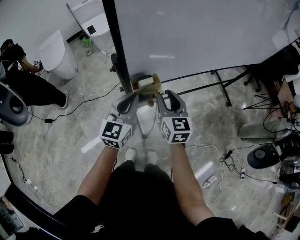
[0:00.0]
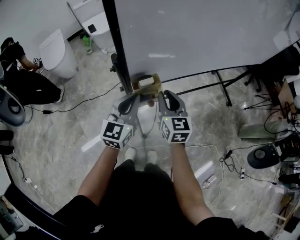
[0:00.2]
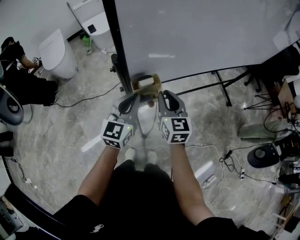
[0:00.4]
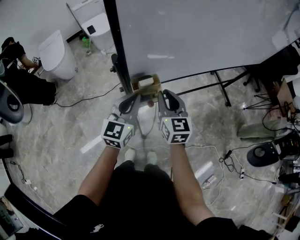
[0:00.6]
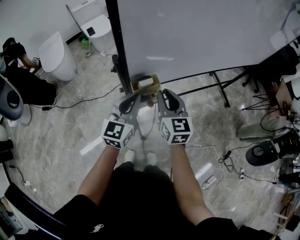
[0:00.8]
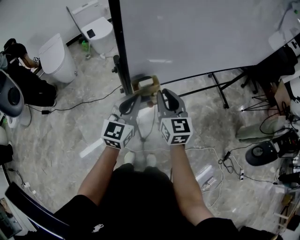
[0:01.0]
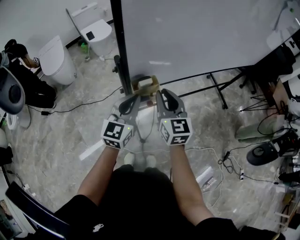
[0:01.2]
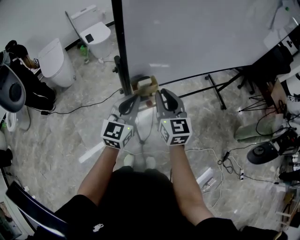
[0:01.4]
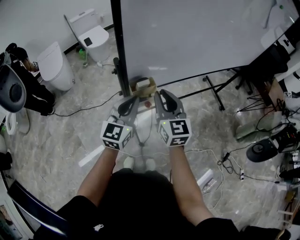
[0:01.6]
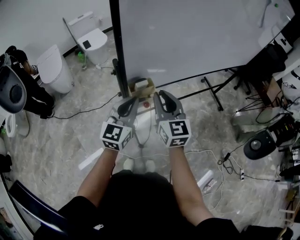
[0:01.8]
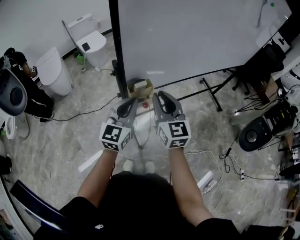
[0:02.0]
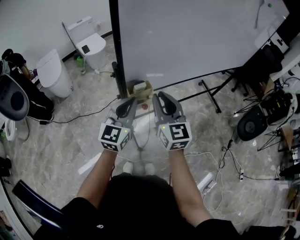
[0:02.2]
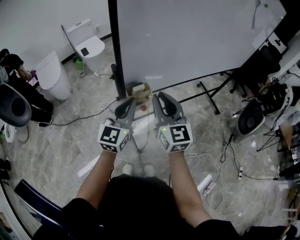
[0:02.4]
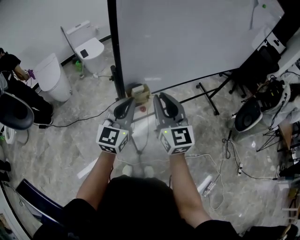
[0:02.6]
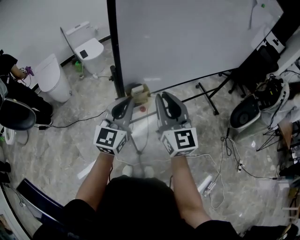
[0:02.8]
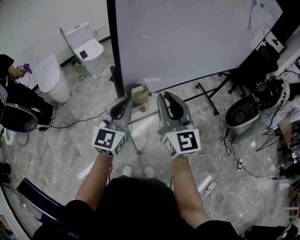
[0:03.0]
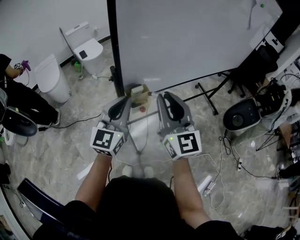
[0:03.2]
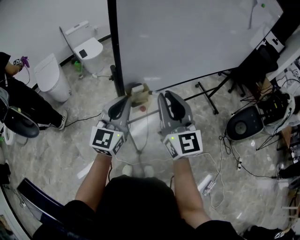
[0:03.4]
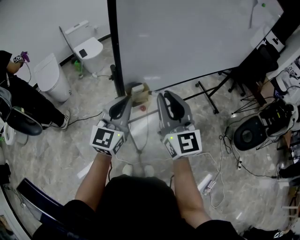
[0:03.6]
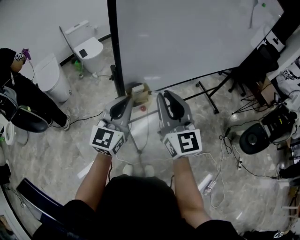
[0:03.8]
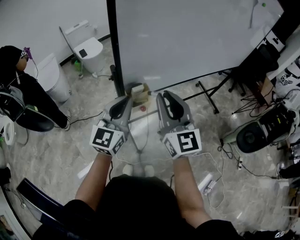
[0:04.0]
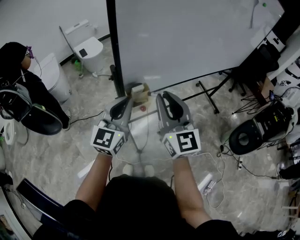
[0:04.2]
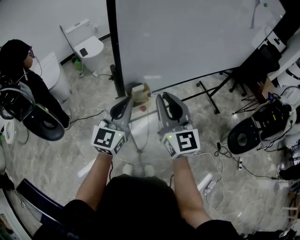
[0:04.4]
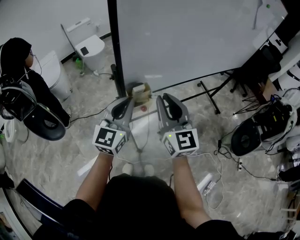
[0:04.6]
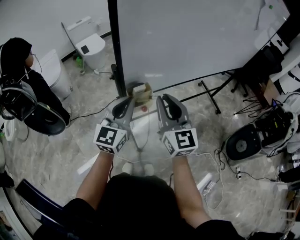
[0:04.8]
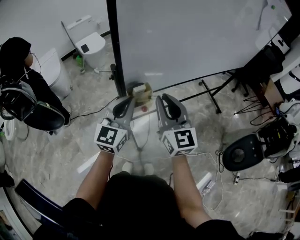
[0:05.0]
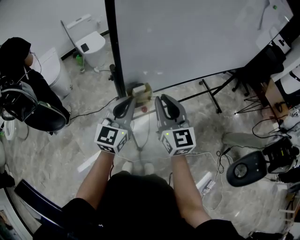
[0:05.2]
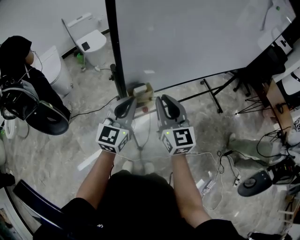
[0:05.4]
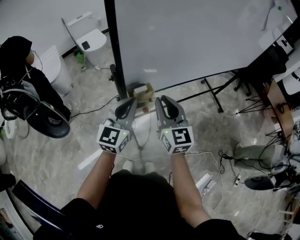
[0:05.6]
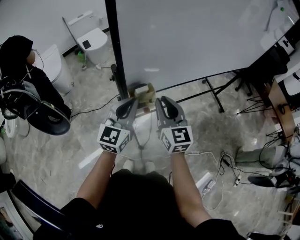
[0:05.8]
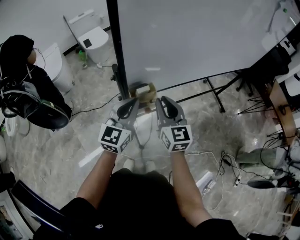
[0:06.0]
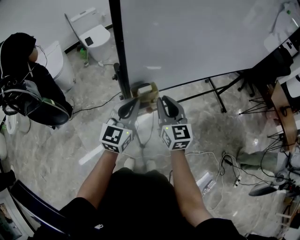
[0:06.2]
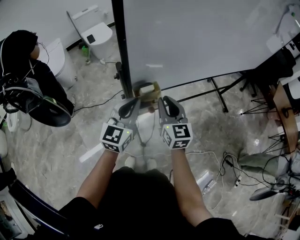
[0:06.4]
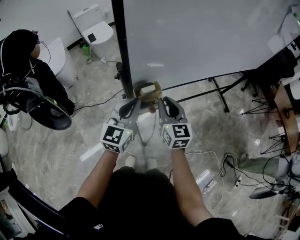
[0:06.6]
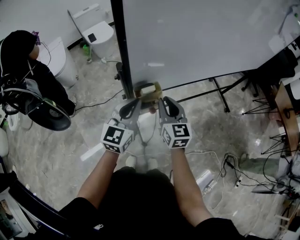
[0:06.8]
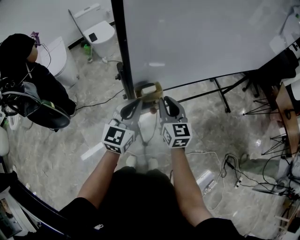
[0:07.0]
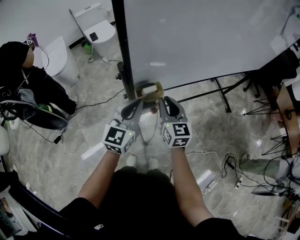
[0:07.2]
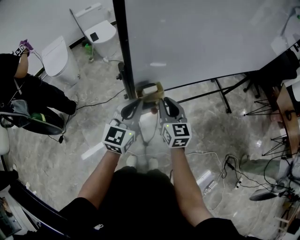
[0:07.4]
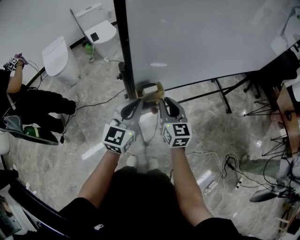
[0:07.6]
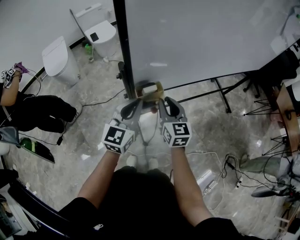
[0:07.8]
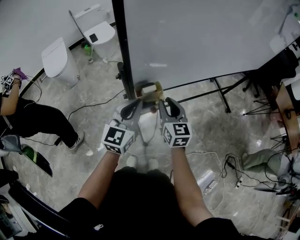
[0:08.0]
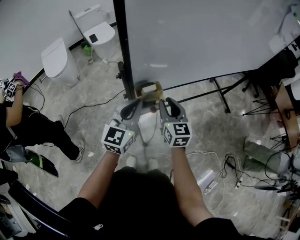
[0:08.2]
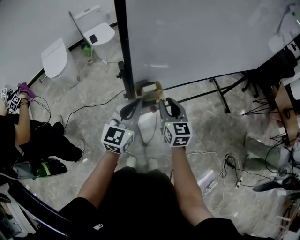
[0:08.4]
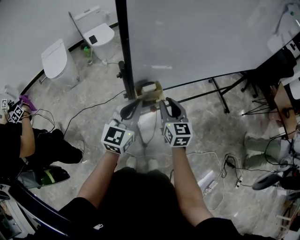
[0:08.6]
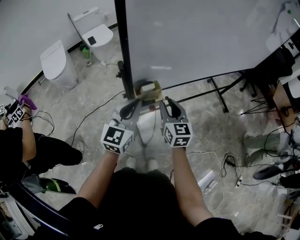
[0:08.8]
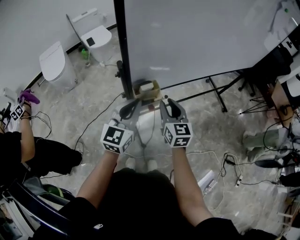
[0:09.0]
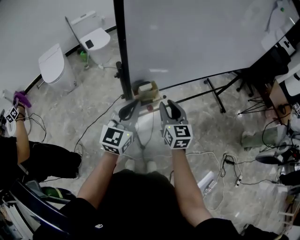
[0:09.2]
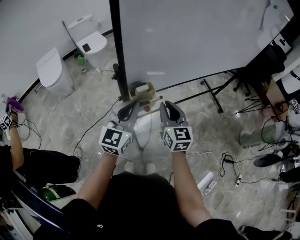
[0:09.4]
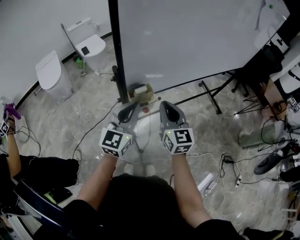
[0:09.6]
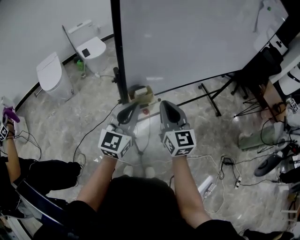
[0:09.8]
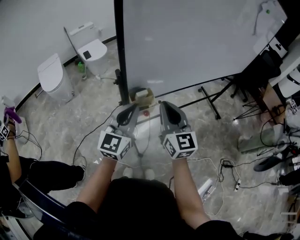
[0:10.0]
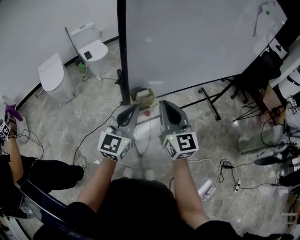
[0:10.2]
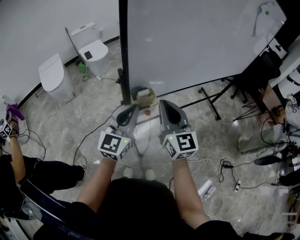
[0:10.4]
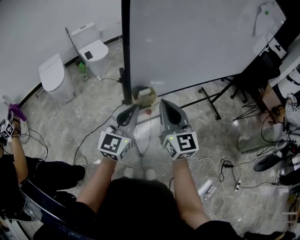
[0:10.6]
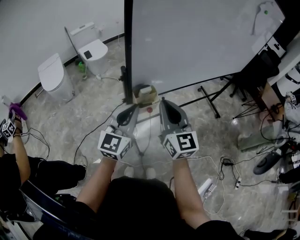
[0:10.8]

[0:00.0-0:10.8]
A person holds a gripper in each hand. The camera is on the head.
0:00.0 to 0:01.6: The right gripper moves upward, roughly 10 cm. The left gripper moves about 5 cm.
0:01.6 to 0:03.0: The right gripper travels upward and backward by approximately 15 cm, while the left gripper moves upward, approximately 10 cm.
0:03.0 to 0:04.6: The grippers stay close to where they were, moving slightly.
0:04.6 to 0:06.2: The right gripper moves downward and forward, roughly 15 cm; the left gripper travels downward by some 5 cm.
0:06.2 to 0:07.8: The right gripper shifts roughly 5 cm downward.
0:07.8 to 0:09.2: The grippers make only small movements.
0:09.2 to 0:10.8: The right gripper heads upward and backward, covering approximately 15 cm, and closes its fingers, while the left gripper goes some 5 cm backward.

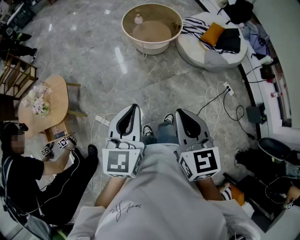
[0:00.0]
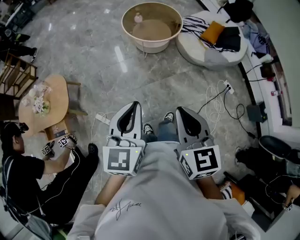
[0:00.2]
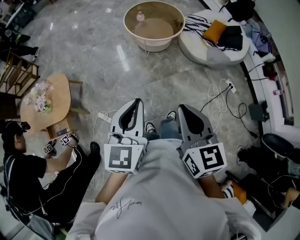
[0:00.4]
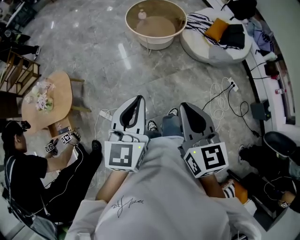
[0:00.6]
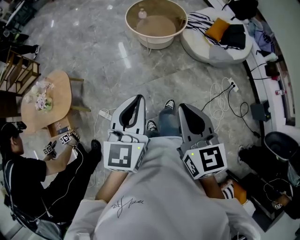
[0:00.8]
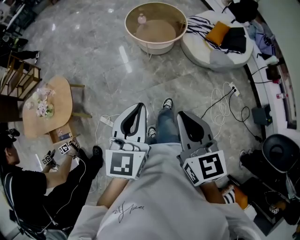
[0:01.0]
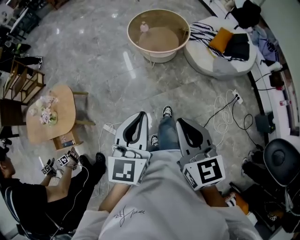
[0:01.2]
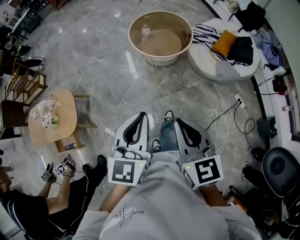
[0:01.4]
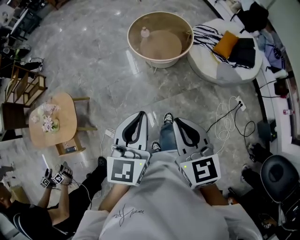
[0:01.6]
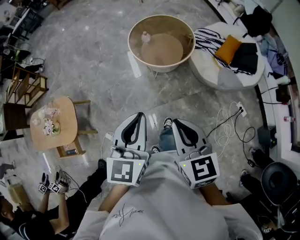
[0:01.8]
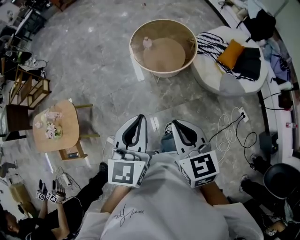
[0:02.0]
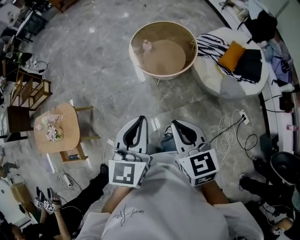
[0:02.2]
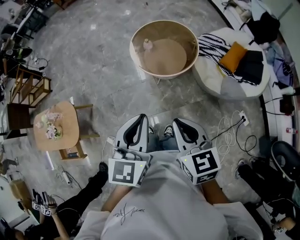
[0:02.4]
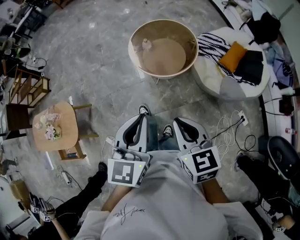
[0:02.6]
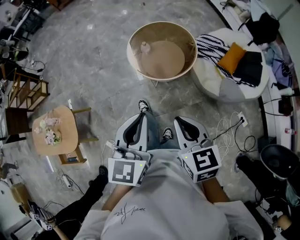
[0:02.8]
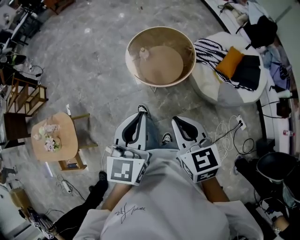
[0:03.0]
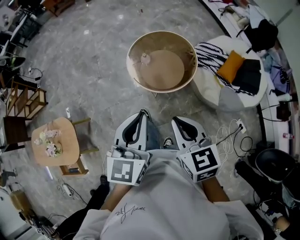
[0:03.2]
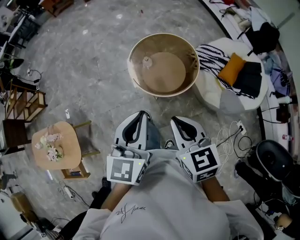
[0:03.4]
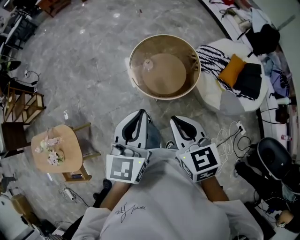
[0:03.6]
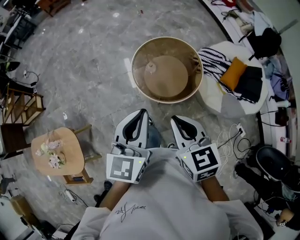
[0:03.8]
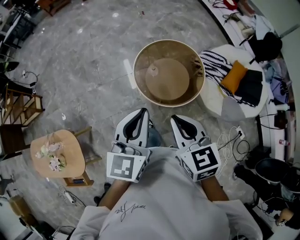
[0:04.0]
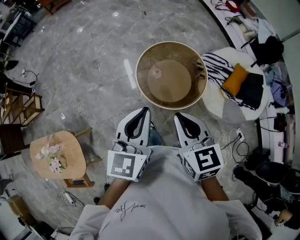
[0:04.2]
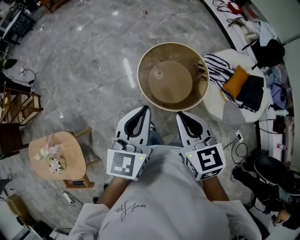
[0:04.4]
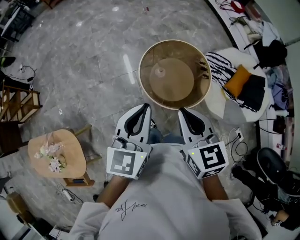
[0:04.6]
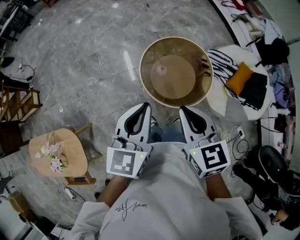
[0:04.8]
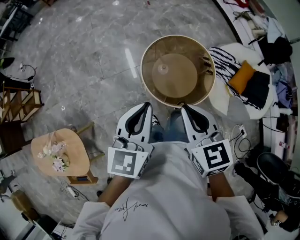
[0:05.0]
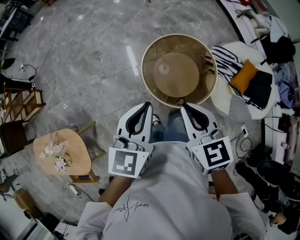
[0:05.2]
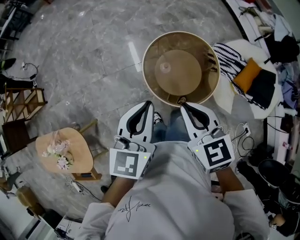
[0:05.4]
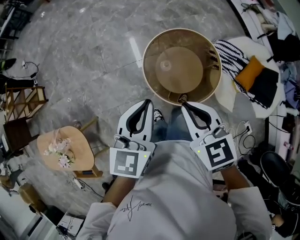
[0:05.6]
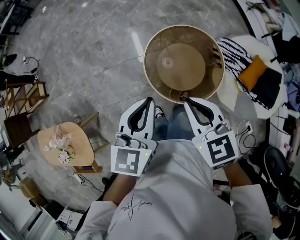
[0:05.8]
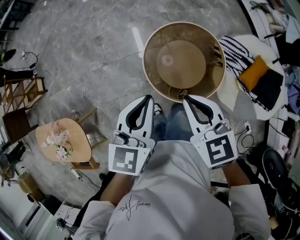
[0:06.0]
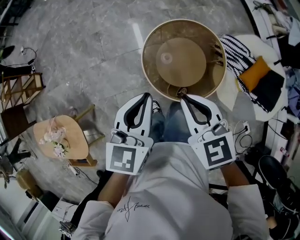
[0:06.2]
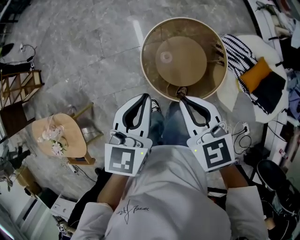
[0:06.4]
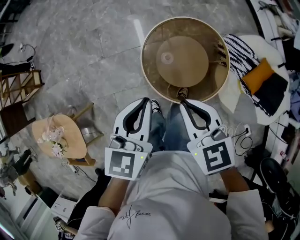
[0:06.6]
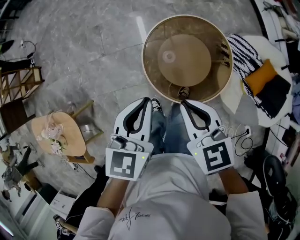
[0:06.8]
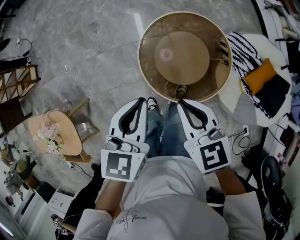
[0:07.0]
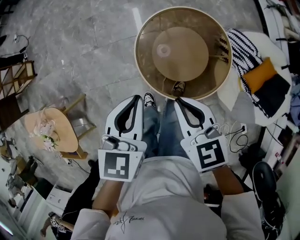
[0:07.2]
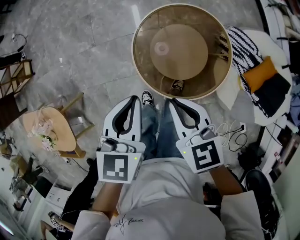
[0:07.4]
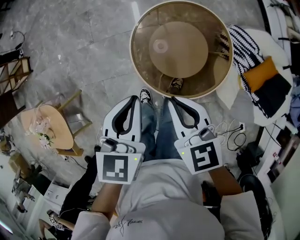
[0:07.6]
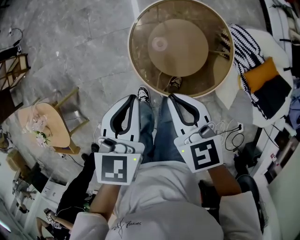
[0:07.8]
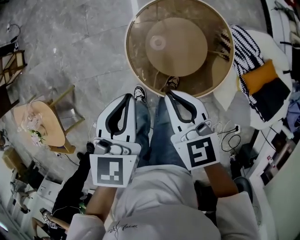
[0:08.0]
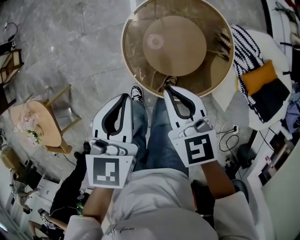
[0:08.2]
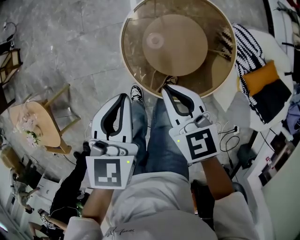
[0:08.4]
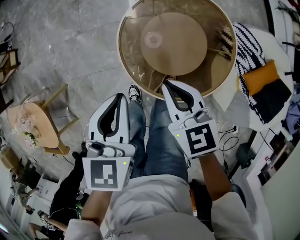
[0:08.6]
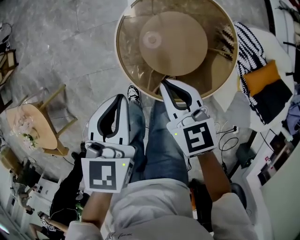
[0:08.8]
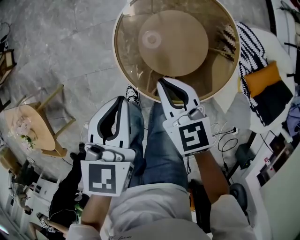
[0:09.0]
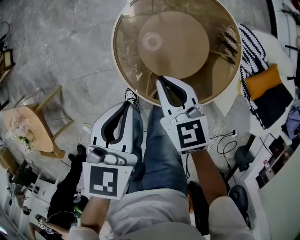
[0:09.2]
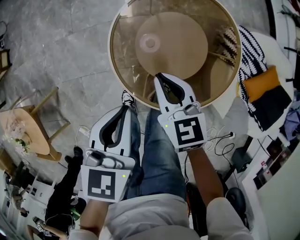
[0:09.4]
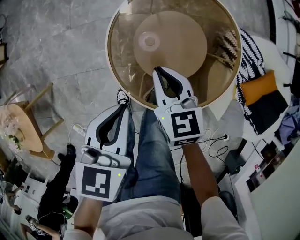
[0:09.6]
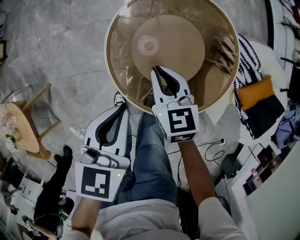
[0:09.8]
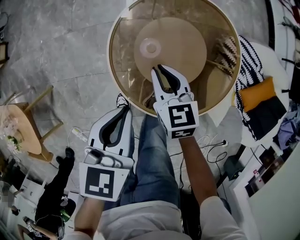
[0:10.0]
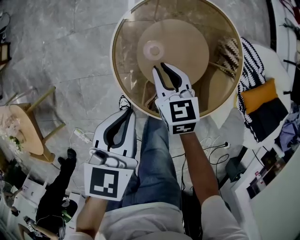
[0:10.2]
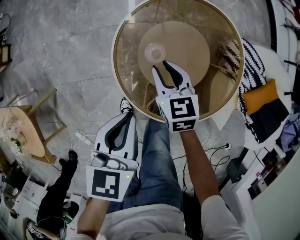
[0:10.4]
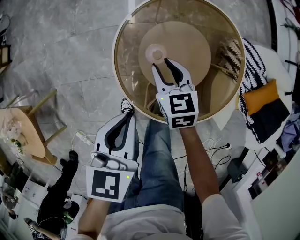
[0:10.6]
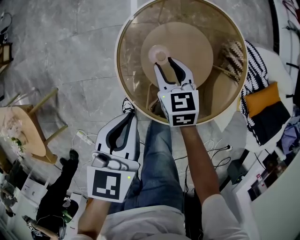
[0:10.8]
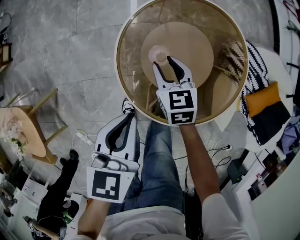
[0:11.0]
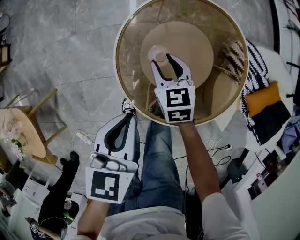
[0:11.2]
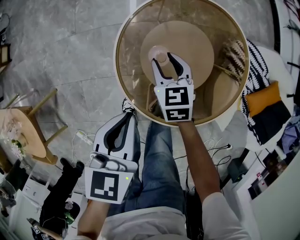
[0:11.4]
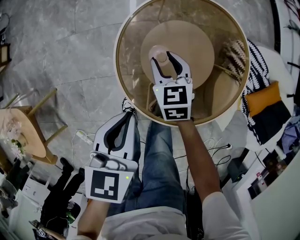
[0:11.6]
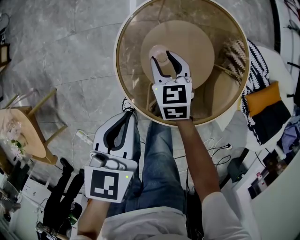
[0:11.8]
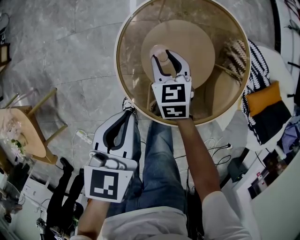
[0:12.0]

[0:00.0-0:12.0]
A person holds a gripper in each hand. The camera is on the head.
0:00.0 to 0:01.6: The grippers both shift forward by about 15 cm.
0:01.6 to 0:03.0: Both grippers move forward, approximately 20 cm.
0:03.0 to 0:04.4: Both grippers travel together forward and to the left, roughly 25 cm.
0:04.4 to 0:06.0: The grippers both shift forward and downward by some 15 cm.
0:06.0 to 0:07.6: The two grippers go about 15 cm downward.
0:07.6 to 0:09.0: The grippers both shift downward by about 15 cm.
0:09.0 to 0:10.4: The right gripper shifts roughly 15 cm downward and forward, and opens; the left gripper heads downward, covering roughly 5 cm.
0:10.4 to 0:12.0: The right gripper moves about 5 cm.

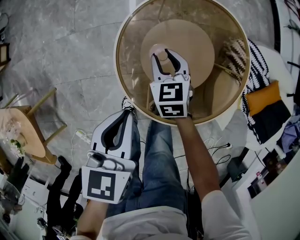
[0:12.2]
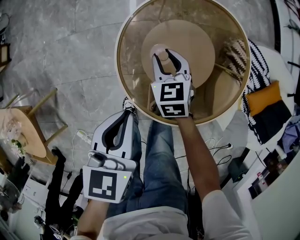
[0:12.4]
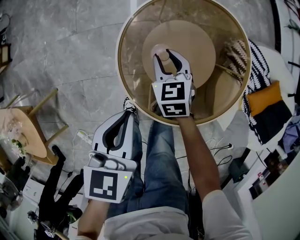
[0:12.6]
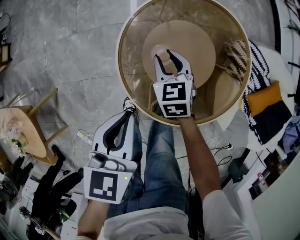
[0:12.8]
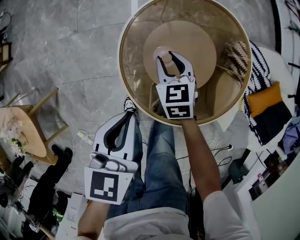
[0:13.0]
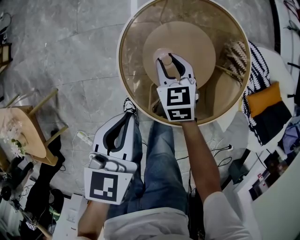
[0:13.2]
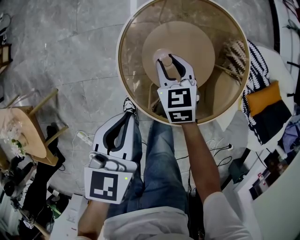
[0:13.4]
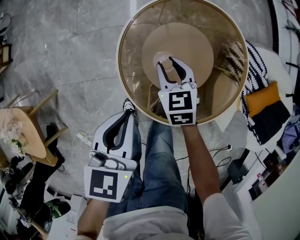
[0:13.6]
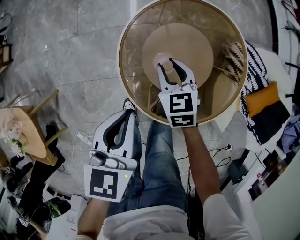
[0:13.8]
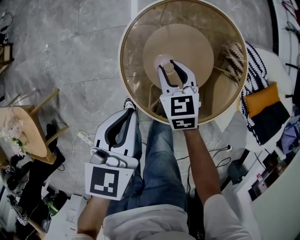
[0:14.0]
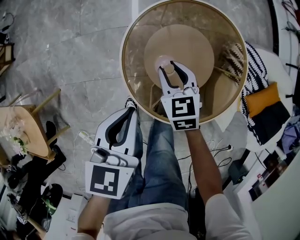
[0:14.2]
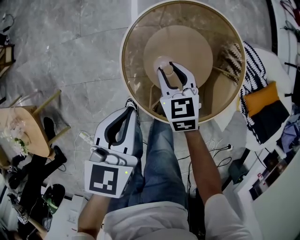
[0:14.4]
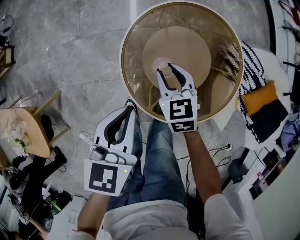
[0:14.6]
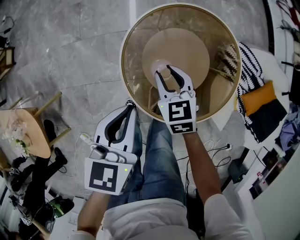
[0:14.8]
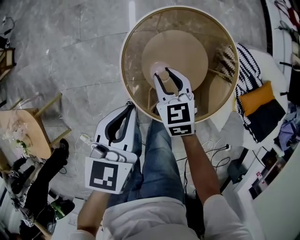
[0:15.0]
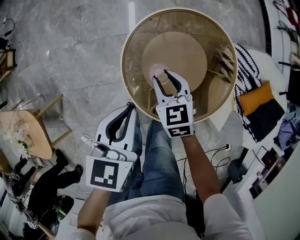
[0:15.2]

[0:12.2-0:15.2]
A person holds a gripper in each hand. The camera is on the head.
0:12.2 to 0:13.8: The grippers stay close to where they were, moving slightly.
0:13.8 to 0:15.2: Both grippers move upward, roughly 5 cm.
